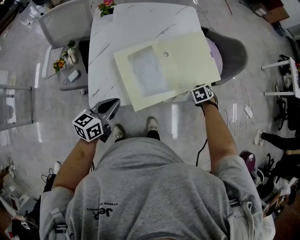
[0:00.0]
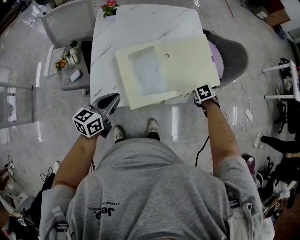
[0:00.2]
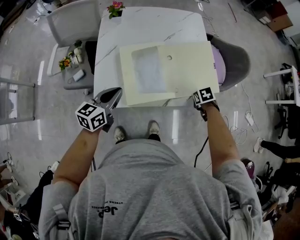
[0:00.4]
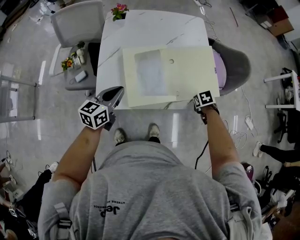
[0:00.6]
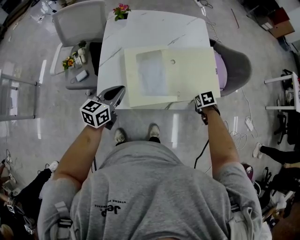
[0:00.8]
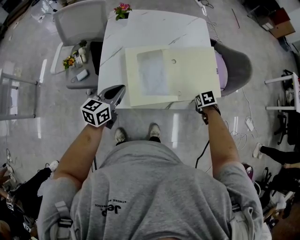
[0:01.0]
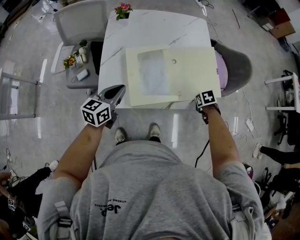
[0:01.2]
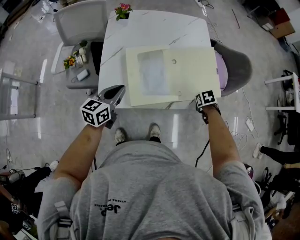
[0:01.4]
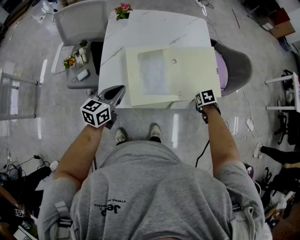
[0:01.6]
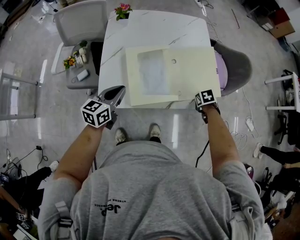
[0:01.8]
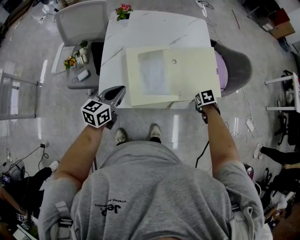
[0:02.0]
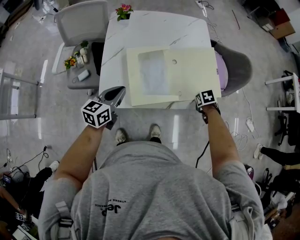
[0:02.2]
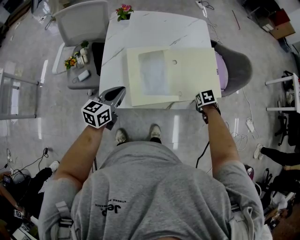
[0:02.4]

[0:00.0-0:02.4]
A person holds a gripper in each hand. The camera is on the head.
0.0 to 1.2 s: The left gripper shifts by about 5 cm.
1.2 to 2.4 s: The two grippers keep their place.

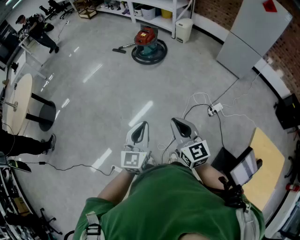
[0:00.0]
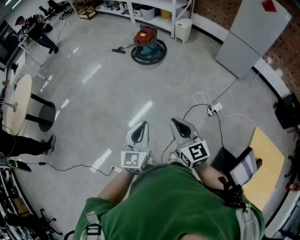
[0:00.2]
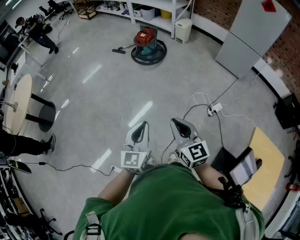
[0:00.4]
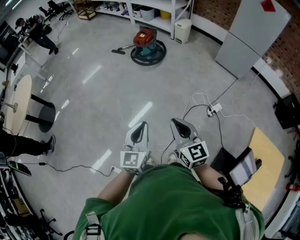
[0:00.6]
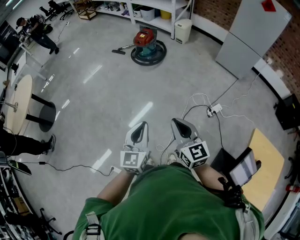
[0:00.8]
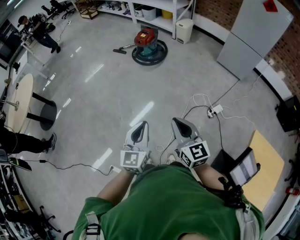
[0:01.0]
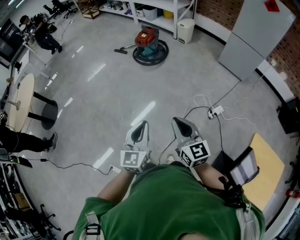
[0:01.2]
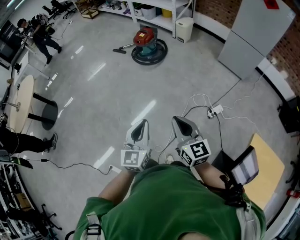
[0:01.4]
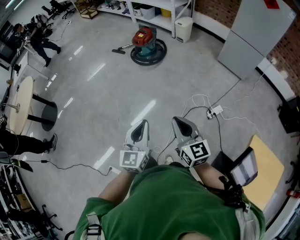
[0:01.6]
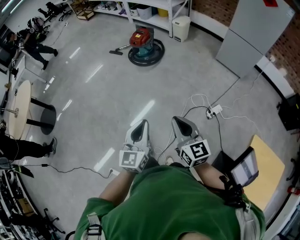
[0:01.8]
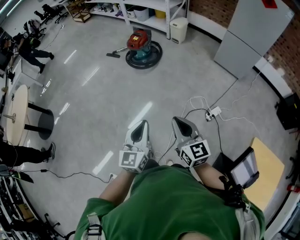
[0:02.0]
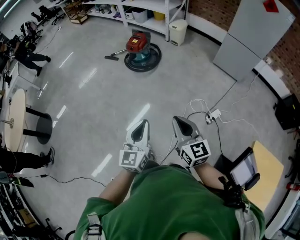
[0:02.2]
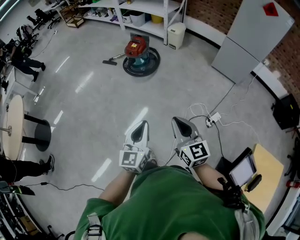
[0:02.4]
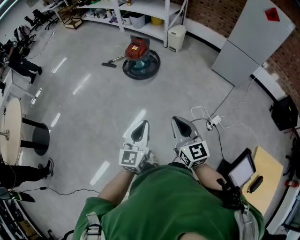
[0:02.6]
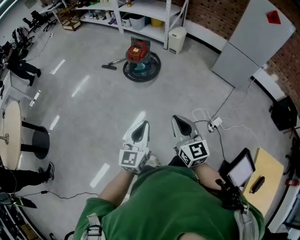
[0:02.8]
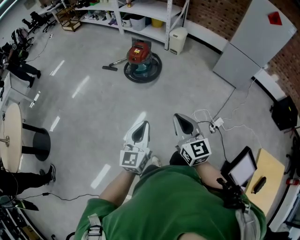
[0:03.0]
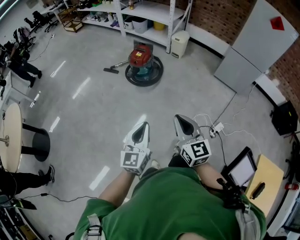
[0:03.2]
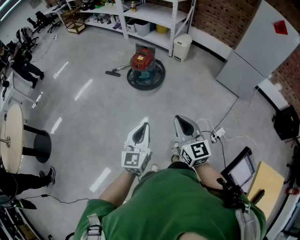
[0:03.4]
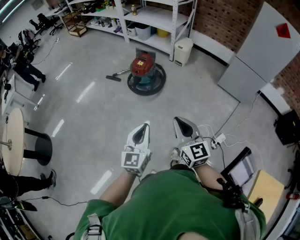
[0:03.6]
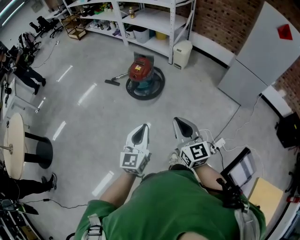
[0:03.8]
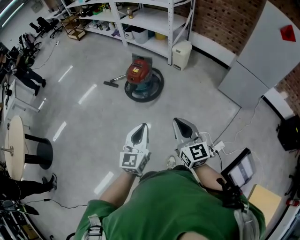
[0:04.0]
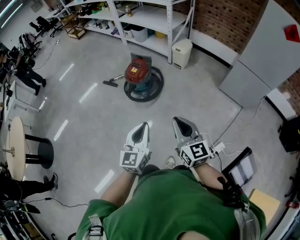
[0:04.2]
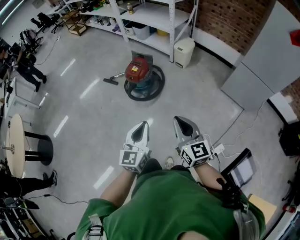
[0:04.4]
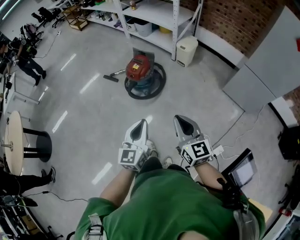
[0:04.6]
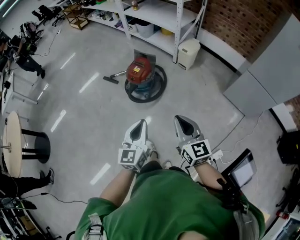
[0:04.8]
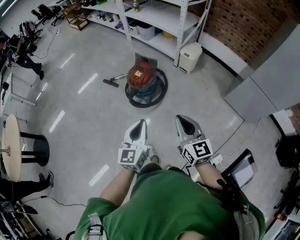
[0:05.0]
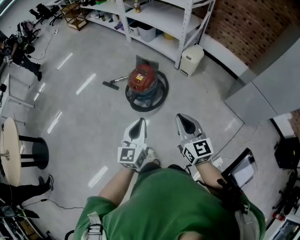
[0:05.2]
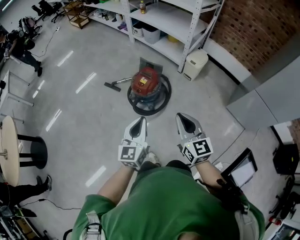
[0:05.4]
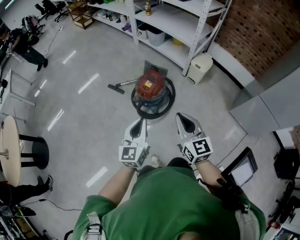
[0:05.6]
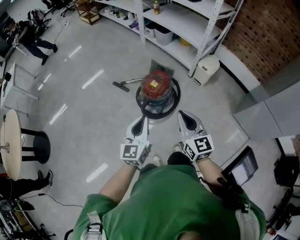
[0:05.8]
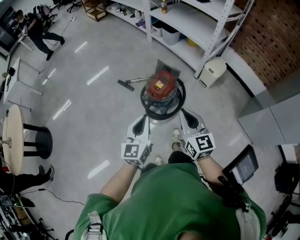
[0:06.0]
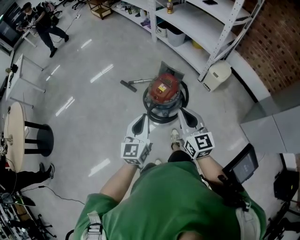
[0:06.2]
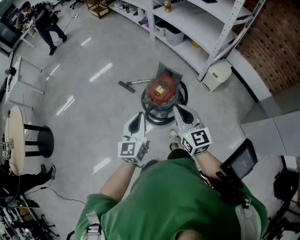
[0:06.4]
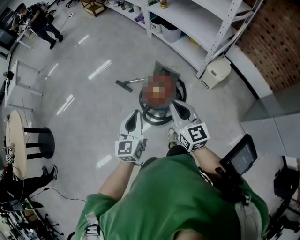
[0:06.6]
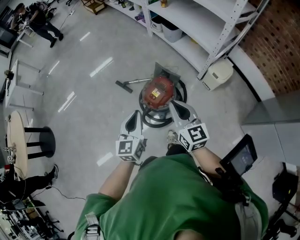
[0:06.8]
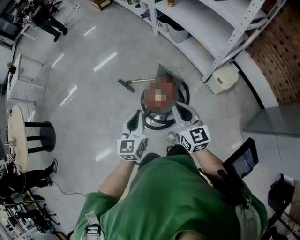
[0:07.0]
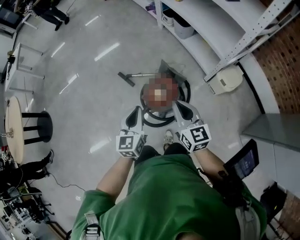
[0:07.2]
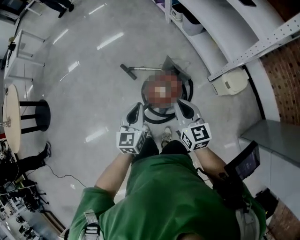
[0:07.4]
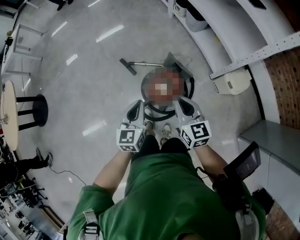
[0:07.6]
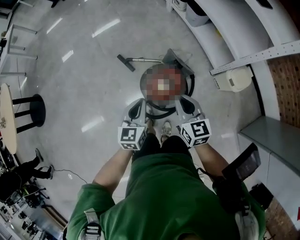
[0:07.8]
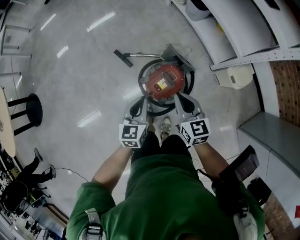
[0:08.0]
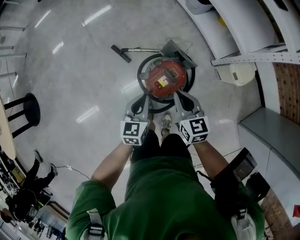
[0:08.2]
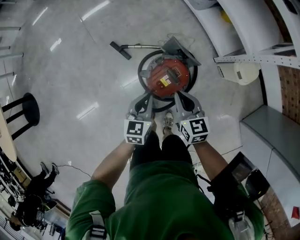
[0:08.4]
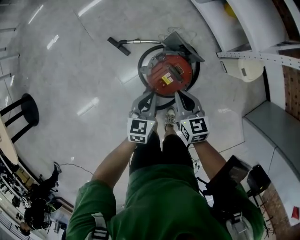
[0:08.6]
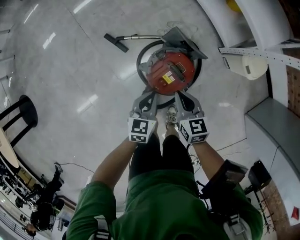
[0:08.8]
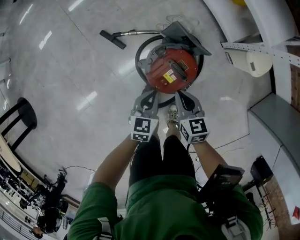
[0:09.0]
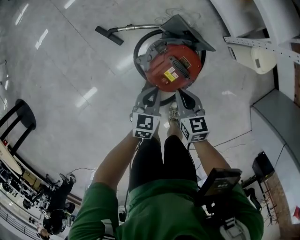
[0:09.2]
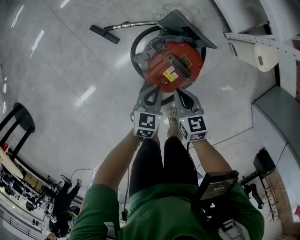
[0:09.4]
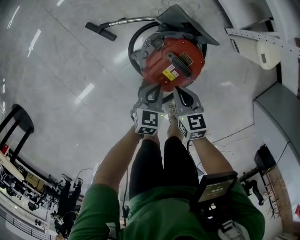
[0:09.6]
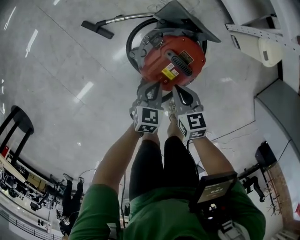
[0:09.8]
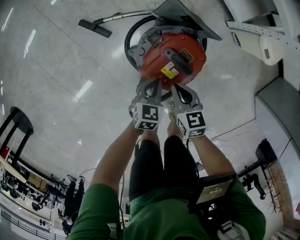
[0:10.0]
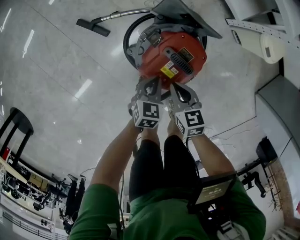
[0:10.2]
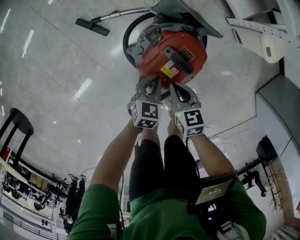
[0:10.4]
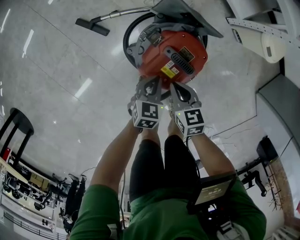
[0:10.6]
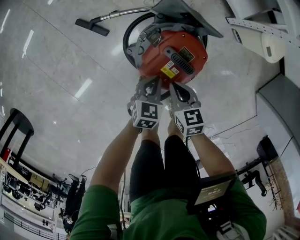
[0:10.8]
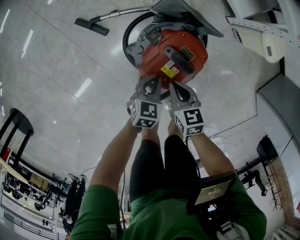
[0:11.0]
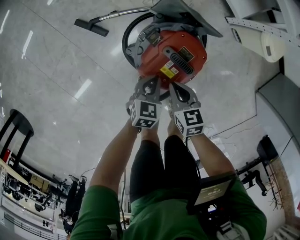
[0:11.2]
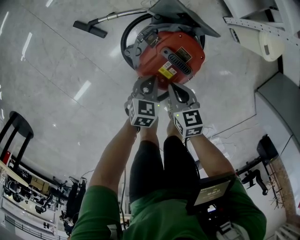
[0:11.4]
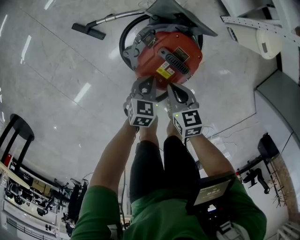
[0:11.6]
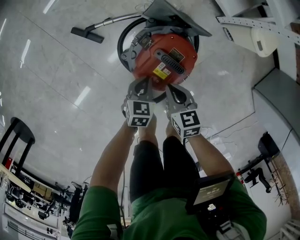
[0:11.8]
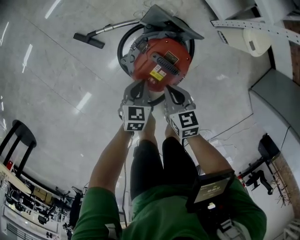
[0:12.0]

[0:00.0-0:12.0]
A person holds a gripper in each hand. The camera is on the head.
0.0 to 1.6 s: The two grippers go roughly 10 cm to the right.
1.6 to 3.0 s: The grippers both shift forward and to the left by about 30 cm.
3.0 to 4.4 s: Both grippers travel together forward and to the right, roughly 30 cm.
4.4 to 6.0 s: The right gripper heads forward, covering roughly 35 cm. The left gripper moves forward and to the left, about 35 cm.
6.0 to 7.6 s: The grippers both shift forward by roughly 30 cm. The left gripper turns by some 20 degrees. Meanwhile the right gripper changes its angle by roughly 20 degrees.
7.6 to 9.0 s: The grippers both shift downward by about 30 cm. The left gripper swivels approximately 30 degrees. The right gripper swivels some 20 degrees.
9.0 to 10.4 s: Both grippers travel together downward, approximately 15 cm.
10.4 to 12.0 s: The right gripper moves upward, roughly 5 cm, while the left gripper shifts by about 5 cm.

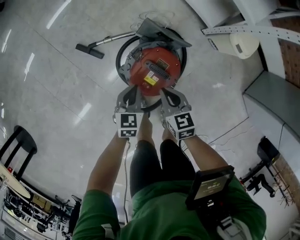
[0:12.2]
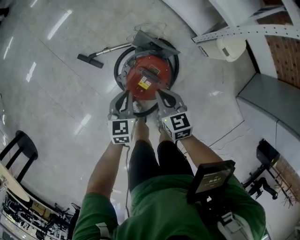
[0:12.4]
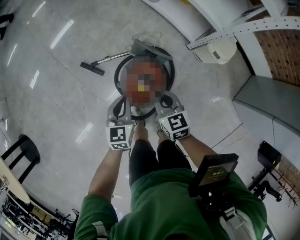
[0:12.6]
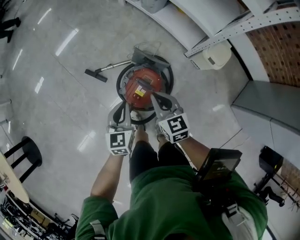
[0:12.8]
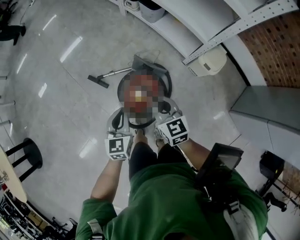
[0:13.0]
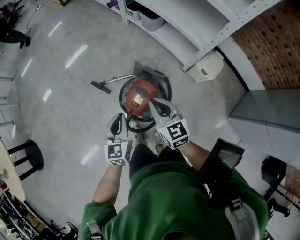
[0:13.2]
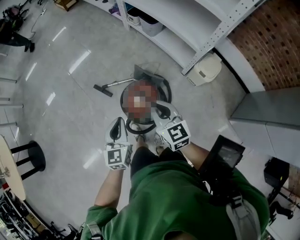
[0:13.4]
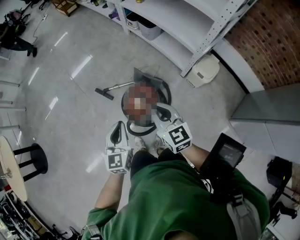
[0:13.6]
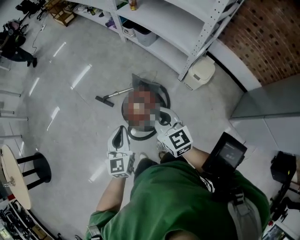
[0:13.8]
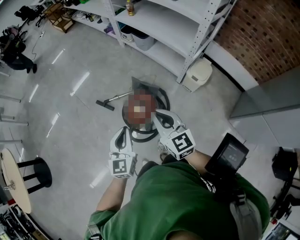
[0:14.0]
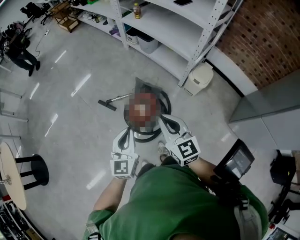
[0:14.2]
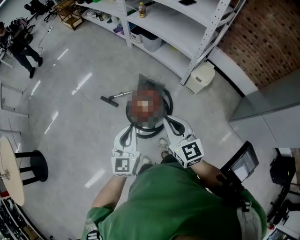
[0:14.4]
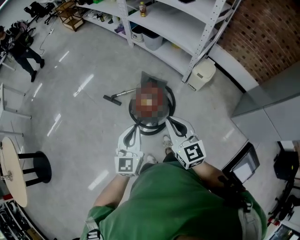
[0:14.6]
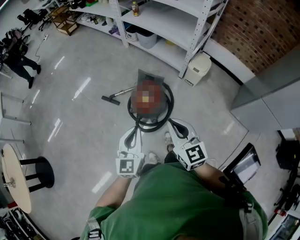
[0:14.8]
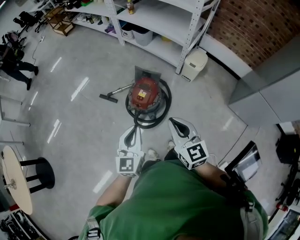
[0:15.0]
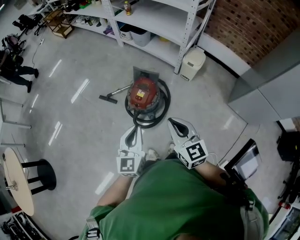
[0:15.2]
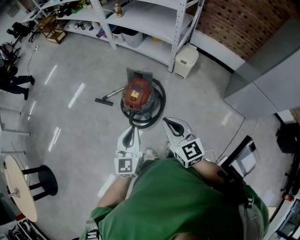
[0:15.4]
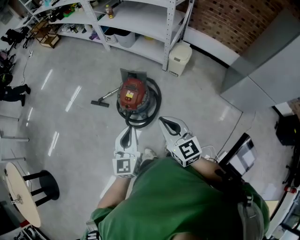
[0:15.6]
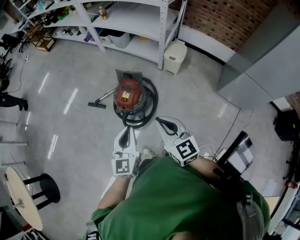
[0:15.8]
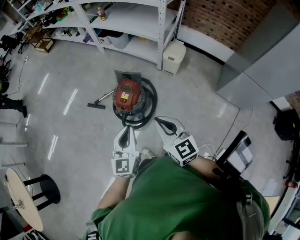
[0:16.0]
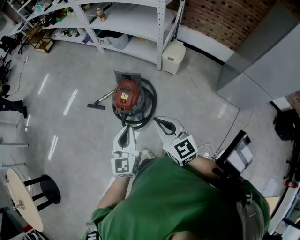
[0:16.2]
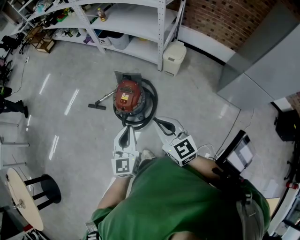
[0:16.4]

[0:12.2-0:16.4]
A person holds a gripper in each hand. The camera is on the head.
12.2 to 13.6 s: The two grippers go roughly 35 cm upward. The right gripper changes its angle by some 30 degrees. Meanwhile the left gripper swivels approximately 30 degrees.
13.6 to 15.0 s: The two grippers go approximately 20 cm backward.
15.0 to 16.4 s: The right gripper moves approximately 5 cm. The left gripper heads to the right, covering approximately 10 cm.

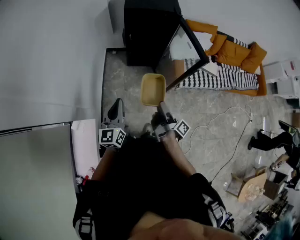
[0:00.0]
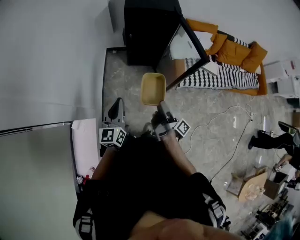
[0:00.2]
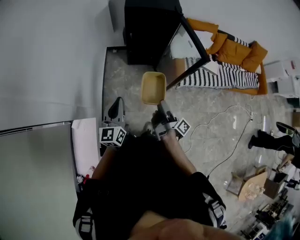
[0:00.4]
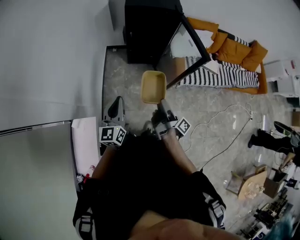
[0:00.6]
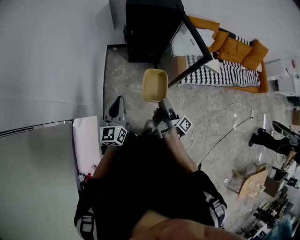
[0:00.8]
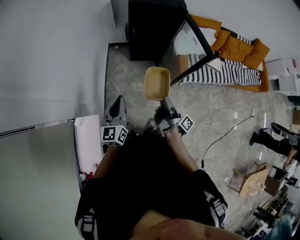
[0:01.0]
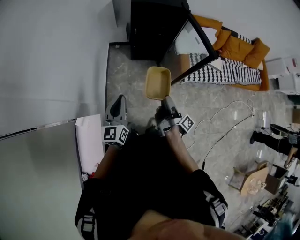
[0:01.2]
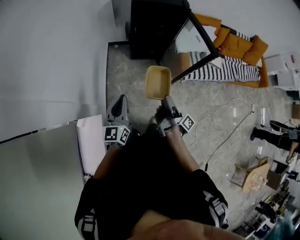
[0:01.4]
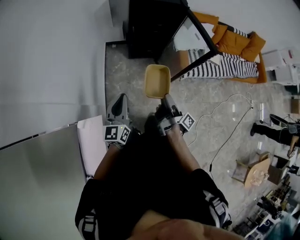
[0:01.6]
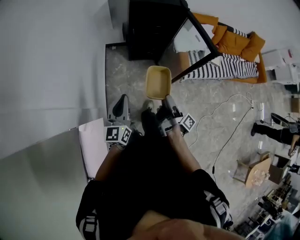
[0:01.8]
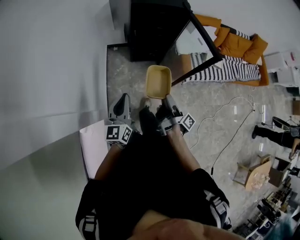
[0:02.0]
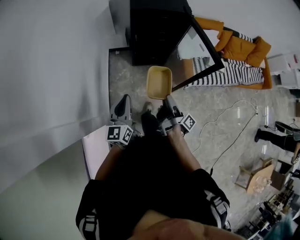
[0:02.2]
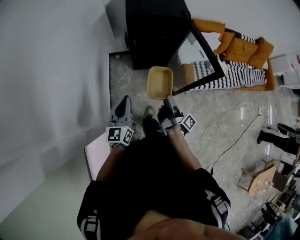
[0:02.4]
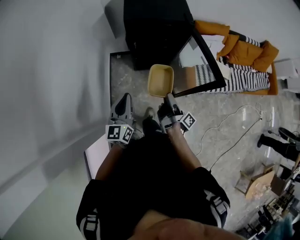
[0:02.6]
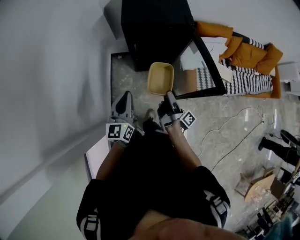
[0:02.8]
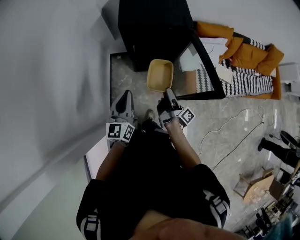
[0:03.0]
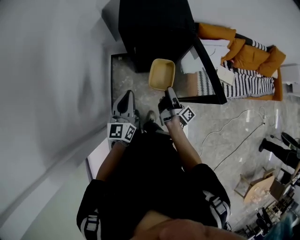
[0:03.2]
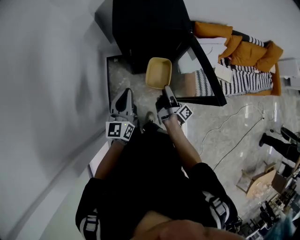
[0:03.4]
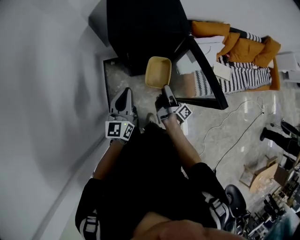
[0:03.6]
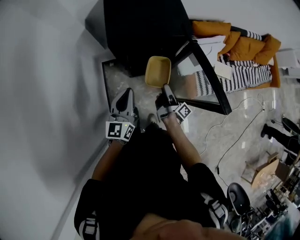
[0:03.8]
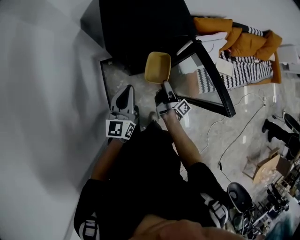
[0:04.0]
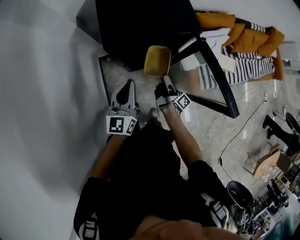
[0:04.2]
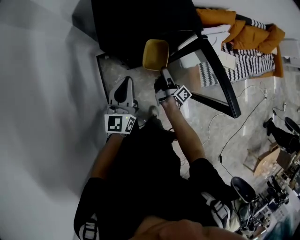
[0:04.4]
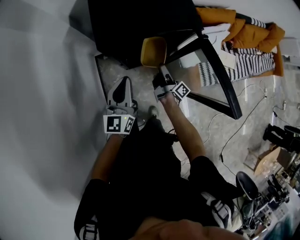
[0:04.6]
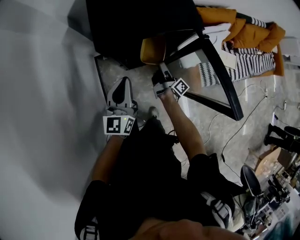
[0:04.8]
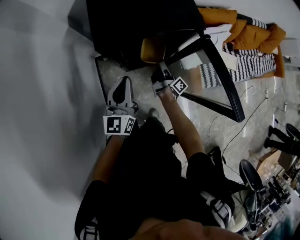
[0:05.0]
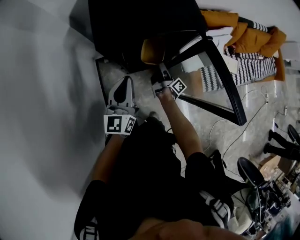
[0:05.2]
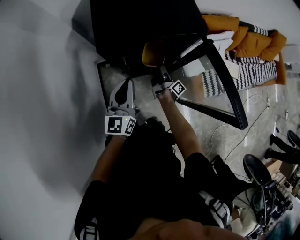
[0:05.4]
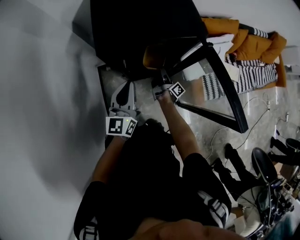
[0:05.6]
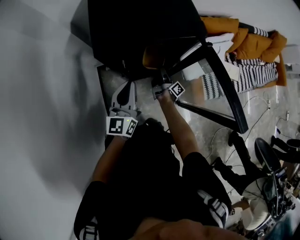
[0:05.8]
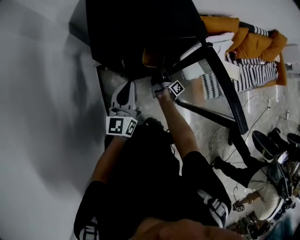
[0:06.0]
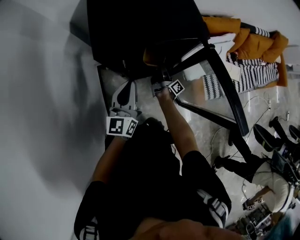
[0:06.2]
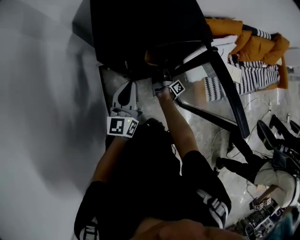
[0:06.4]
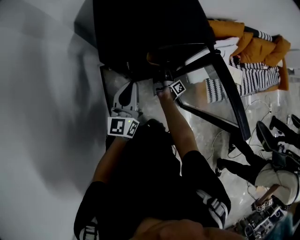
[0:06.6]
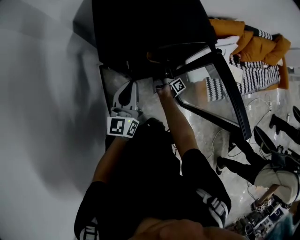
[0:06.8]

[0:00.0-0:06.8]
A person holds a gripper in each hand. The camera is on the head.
0.0 to 1.4 s: The two grippers go some 5 cm to the left.
1.4 to 2.8 s: The two grippers go approximately 25 cm forward.
2.8 to 4.0 s: The left gripper moves forward, approximately 20 cm; the right gripper moves forward and downward, some 20 cm.
4.0 to 5.4 s: The right gripper travels downward and forward by roughly 20 cm, while the left gripper shifts about 10 cm downward and forward.
5.4 to 6.8 s: The right gripper heads forward, covering about 5 cm.
